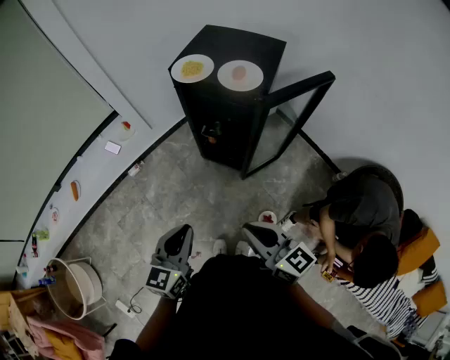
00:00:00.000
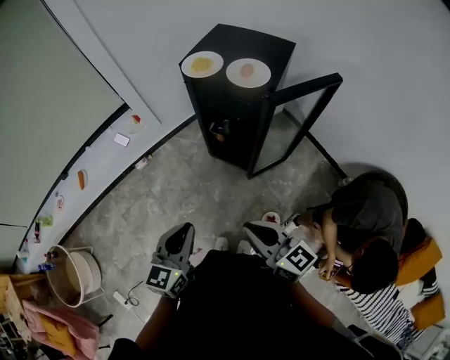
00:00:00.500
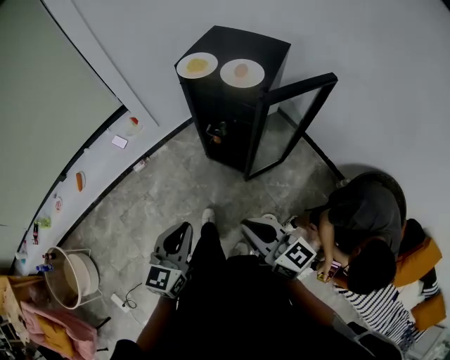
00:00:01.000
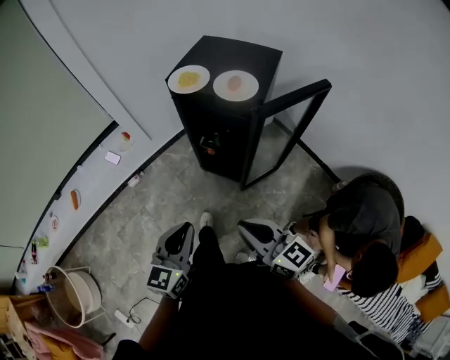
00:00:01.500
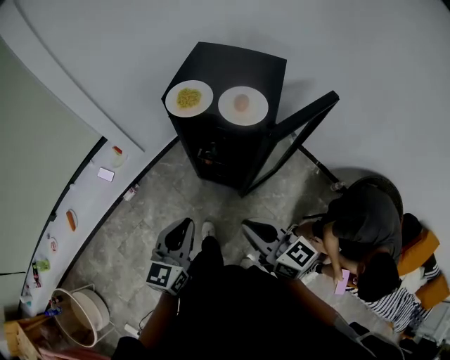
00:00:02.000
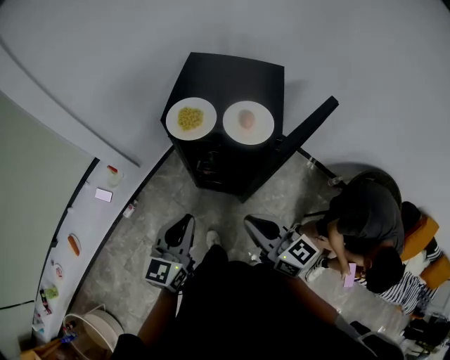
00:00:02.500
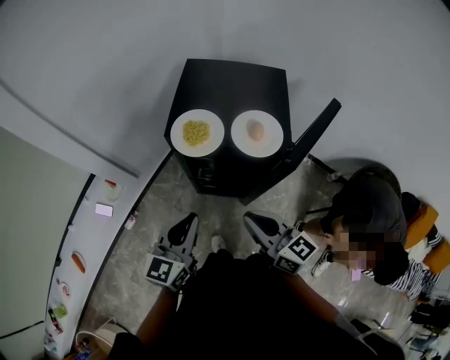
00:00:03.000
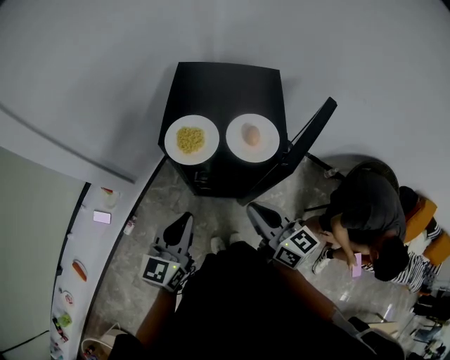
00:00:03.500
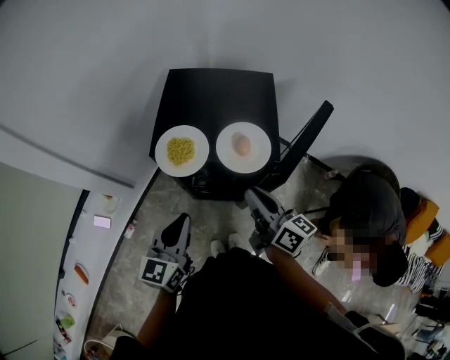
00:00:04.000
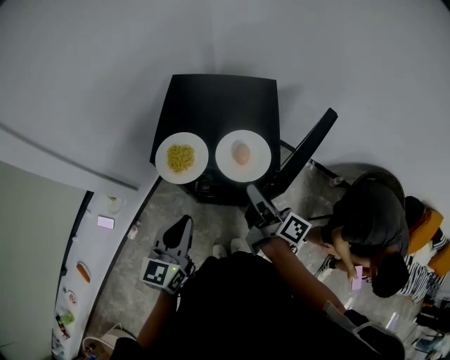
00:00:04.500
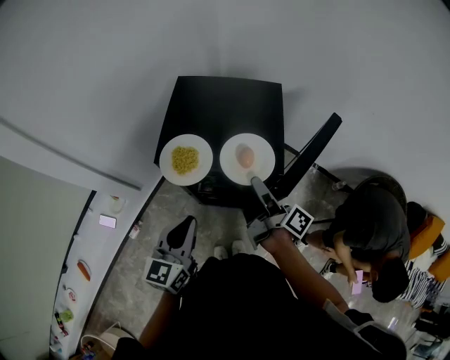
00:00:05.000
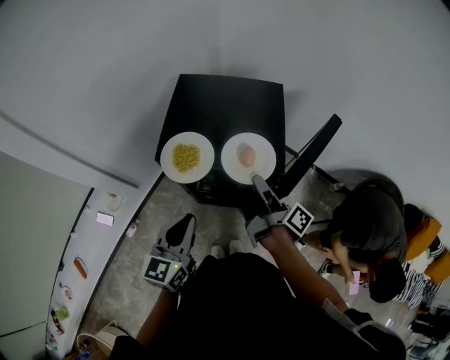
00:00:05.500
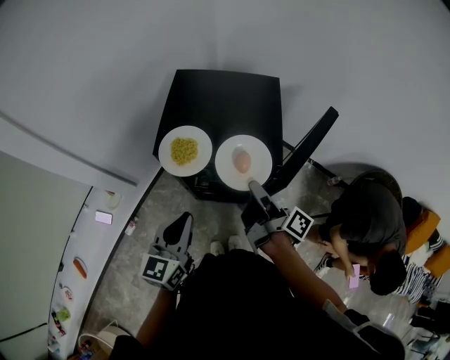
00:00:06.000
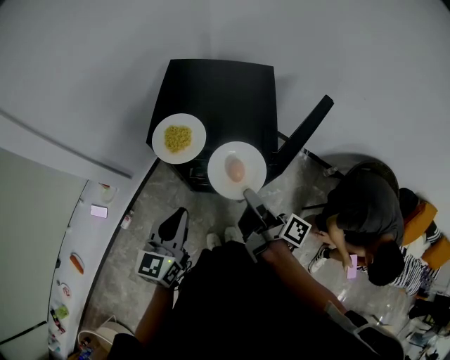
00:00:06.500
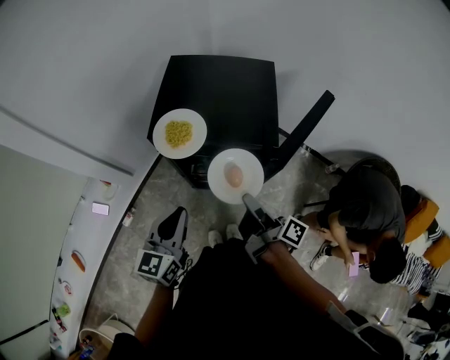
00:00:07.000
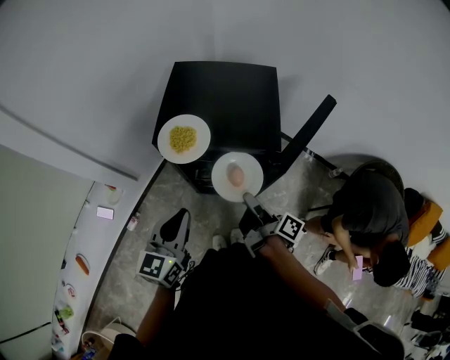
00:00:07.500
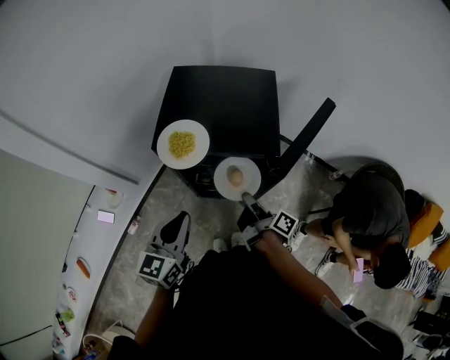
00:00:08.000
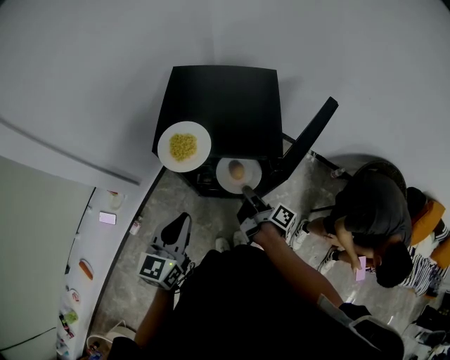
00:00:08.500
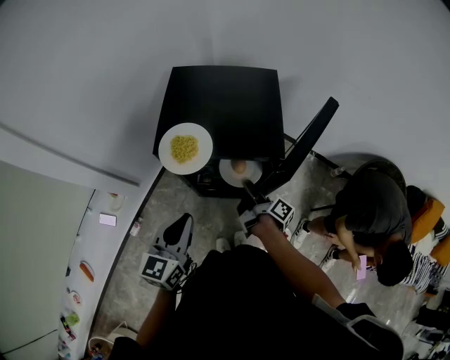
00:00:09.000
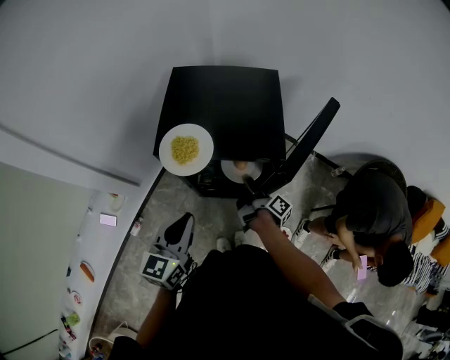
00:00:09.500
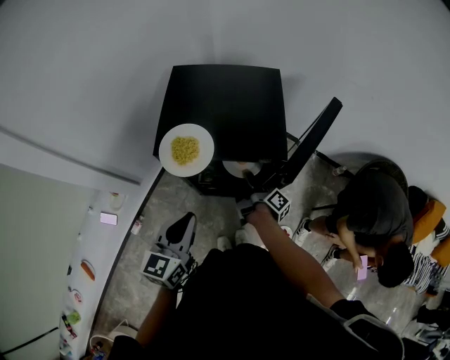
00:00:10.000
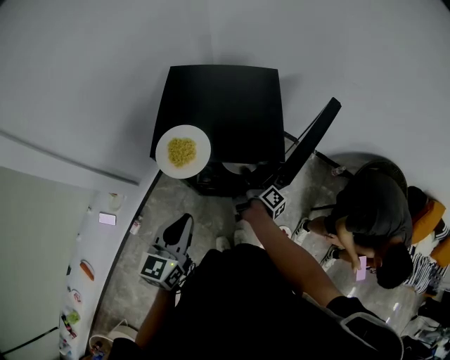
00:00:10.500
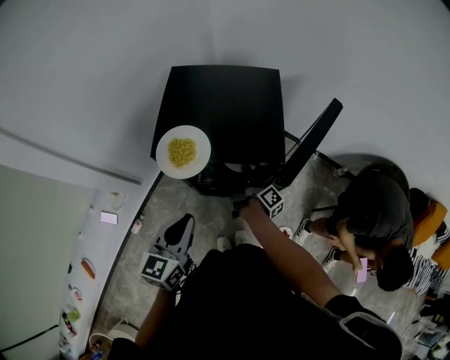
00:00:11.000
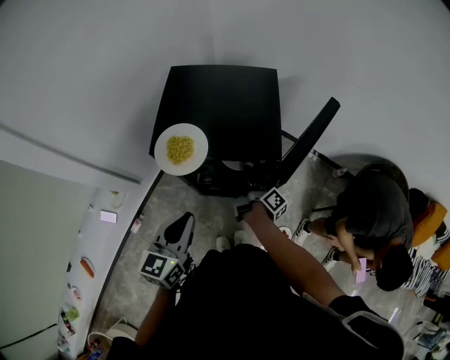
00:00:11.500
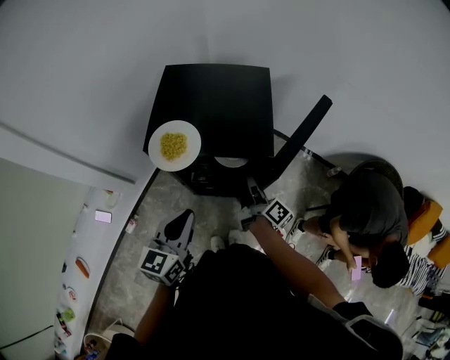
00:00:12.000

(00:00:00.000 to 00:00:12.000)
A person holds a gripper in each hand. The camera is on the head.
00:00:00.000 - 00:00:02.000: The grippers both shift forward by some 15 cm.
00:00:02.000 - 00:00:04.000: Both grippers move forward, about 20 cm. The right gripper swivels some 40 degrees.
00:00:04.000 - 00:00:06.000: The right gripper rolls clockwise, seen from behind, by about 40 degrees.
00:00:06.000 - 00:00:08.000: The right gripper travels downward by some 10 cm.
00:00:08.000 - 00:00:10.000: The right gripper travels forward and downward by approximately 10 cm.
00:00:10.000 - 00:00:12.000: The right gripper shifts approximately 5 cm upward, swivels about 30 degrees, and opens, then closes again.

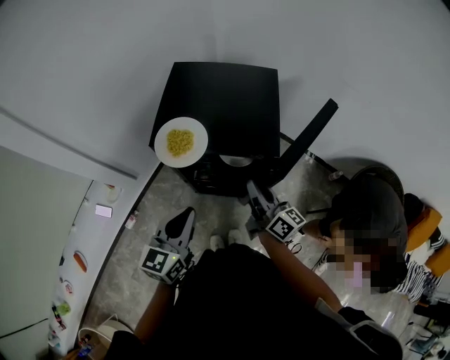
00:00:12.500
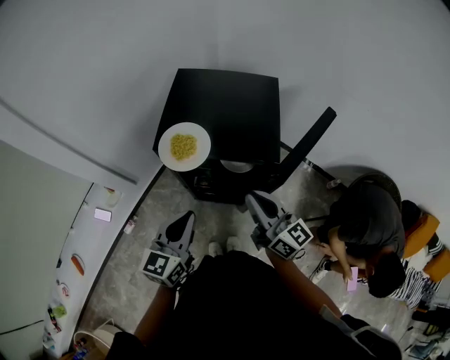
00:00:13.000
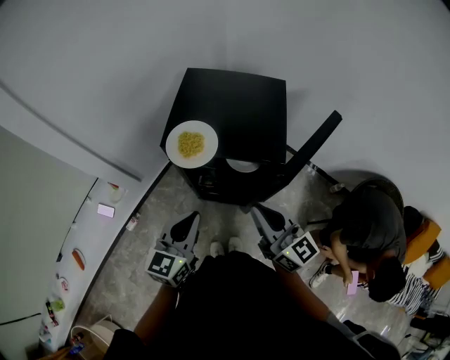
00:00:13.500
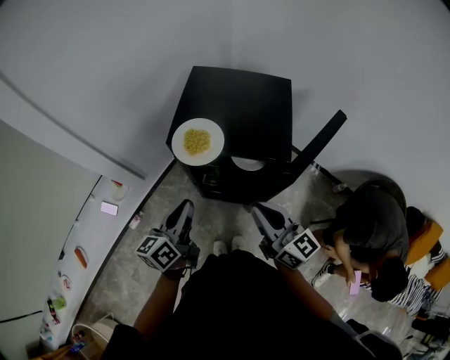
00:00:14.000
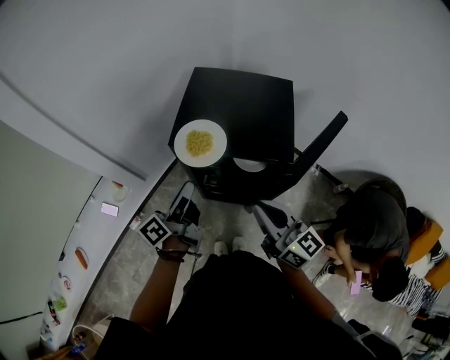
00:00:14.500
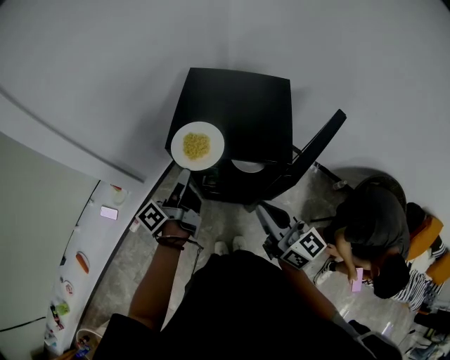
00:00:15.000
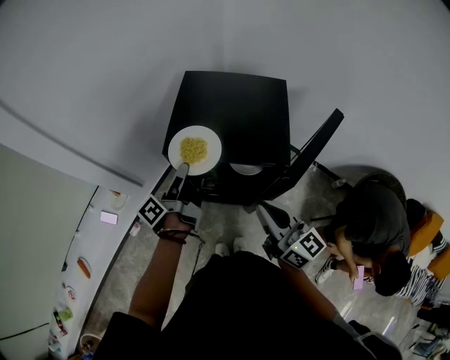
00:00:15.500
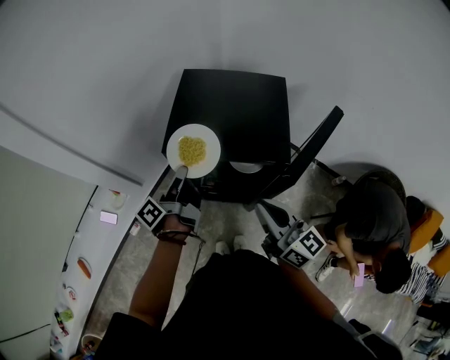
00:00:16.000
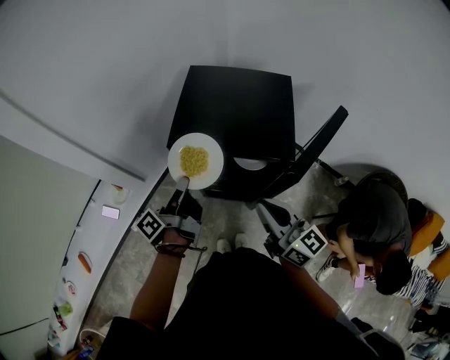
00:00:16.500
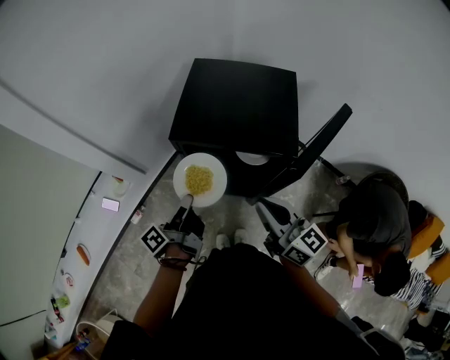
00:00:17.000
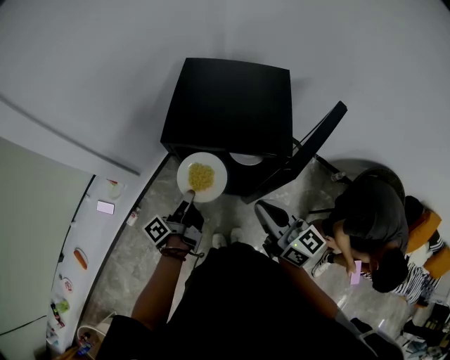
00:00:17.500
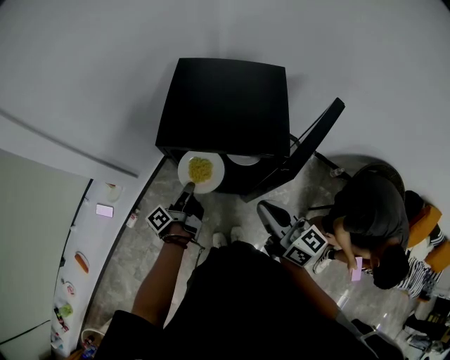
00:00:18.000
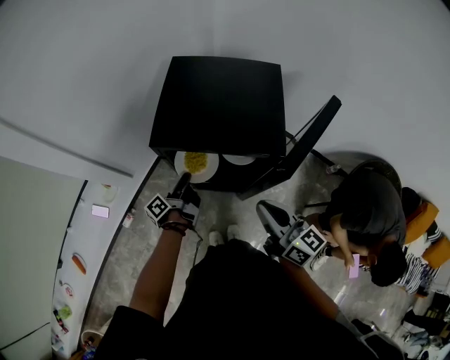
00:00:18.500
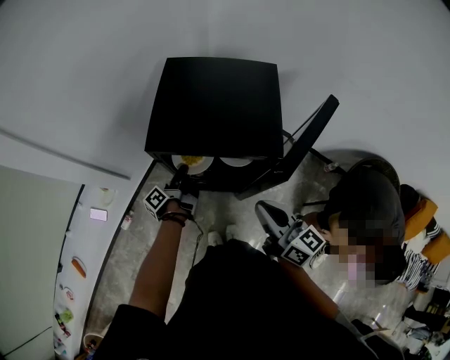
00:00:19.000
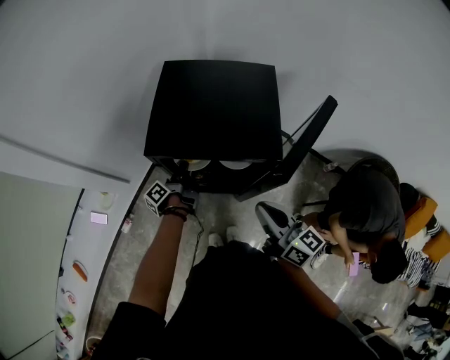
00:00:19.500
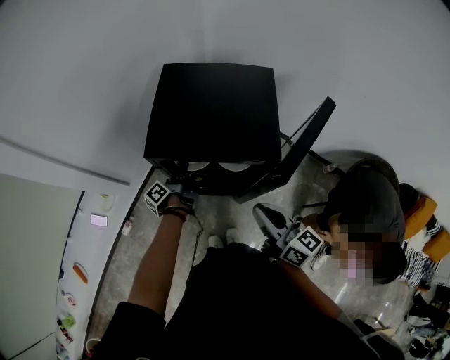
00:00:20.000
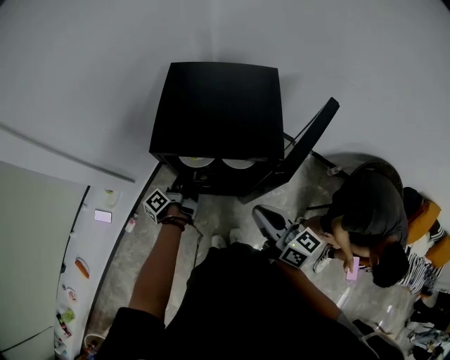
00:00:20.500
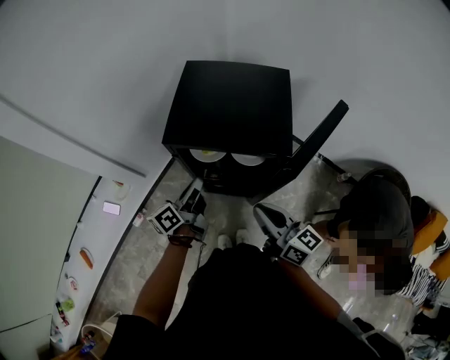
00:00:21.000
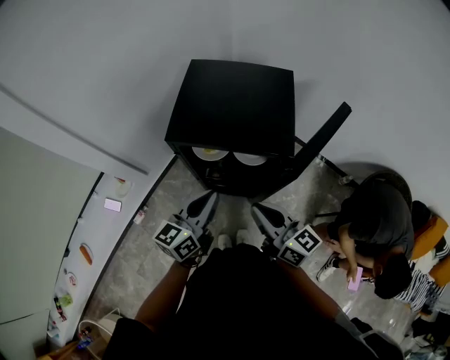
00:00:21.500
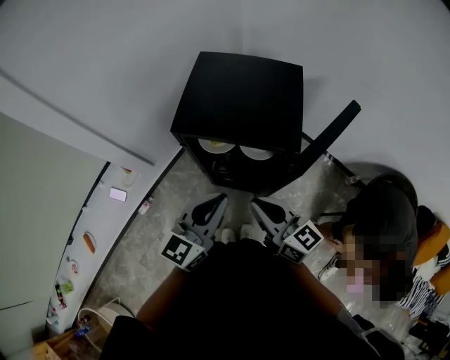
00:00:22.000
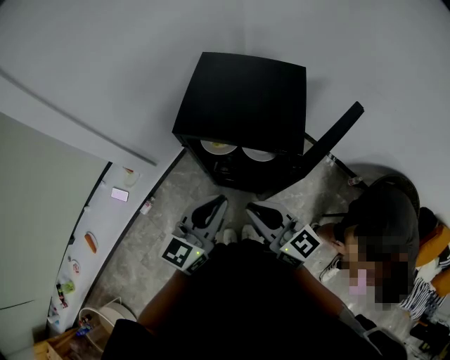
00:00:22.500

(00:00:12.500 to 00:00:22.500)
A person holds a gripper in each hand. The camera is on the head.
00:00:12.500 - 00:00:14.500: The left gripper shifts some 5 cm forward, rotates around the line of its fingers by roughly 60 degrees, counterclockwise from behind, and opens up. Meanwhile the right gripper heads upward, backward and to the left, covering approximately 15 cm, and turns by about 20 degrees.
00:00:14.500 - 00:00:16.500: The left gripper closes up.
00:00:16.500 - 00:00:18.500: The right gripper changes place by roughly 5 cm. The left gripper shifts about 15 cm downward.
00:00:20.500 - 00:00:22.500: The left gripper travels upward and backward by about 30 cm, and rotates around the line of its fingers by some 80 degrees, clockwise from behind. The right gripper goes about 5 cm to the left, and changes its angle by some 20 degrees.

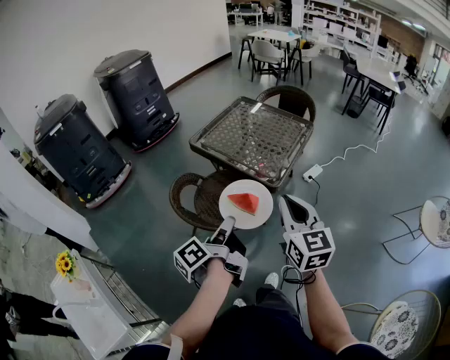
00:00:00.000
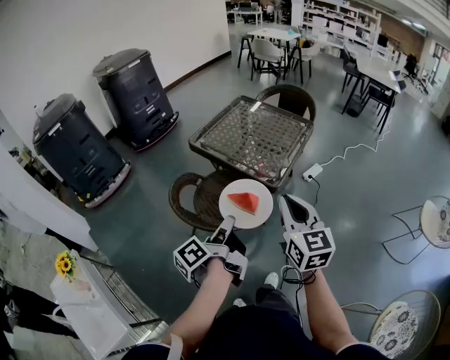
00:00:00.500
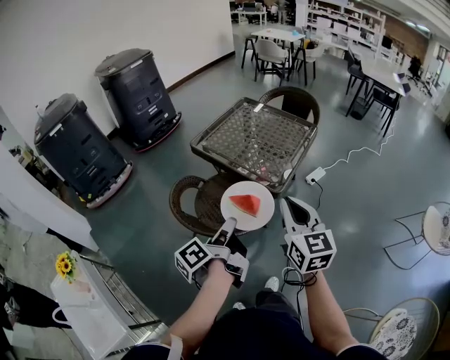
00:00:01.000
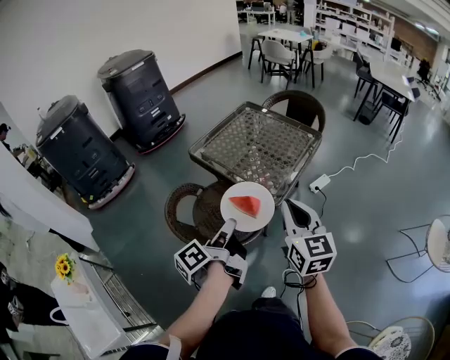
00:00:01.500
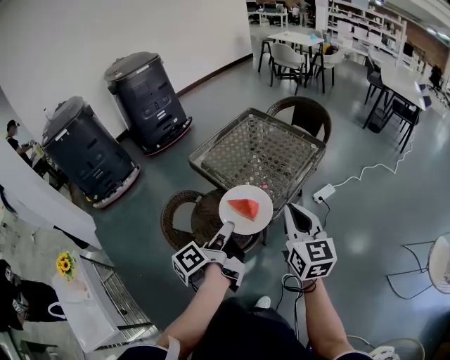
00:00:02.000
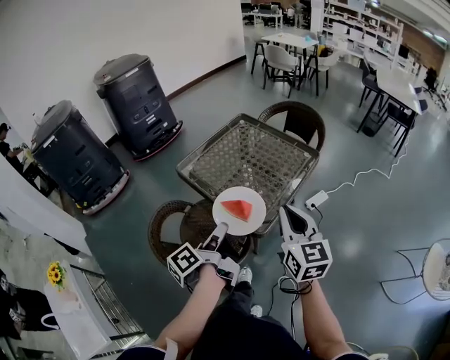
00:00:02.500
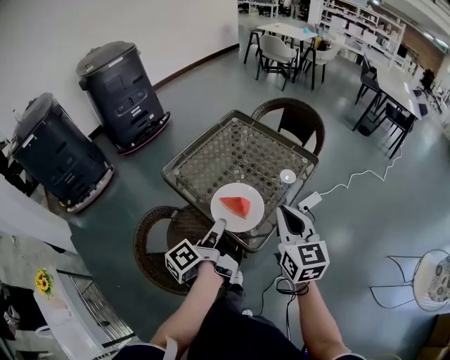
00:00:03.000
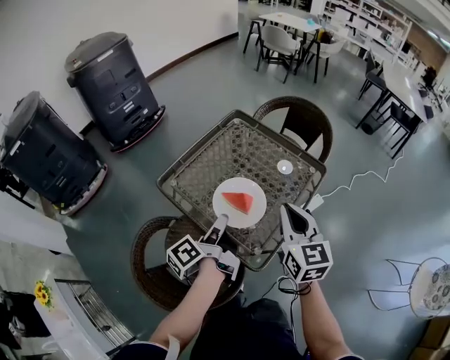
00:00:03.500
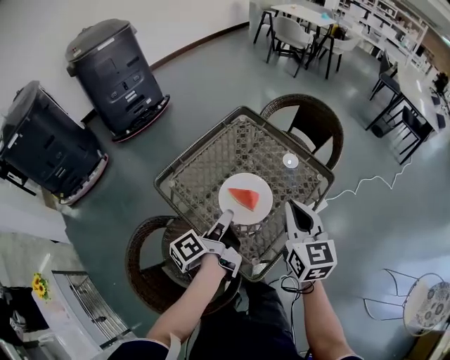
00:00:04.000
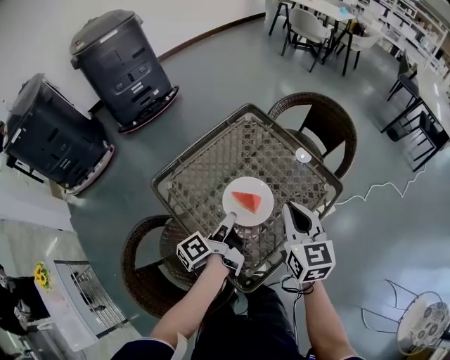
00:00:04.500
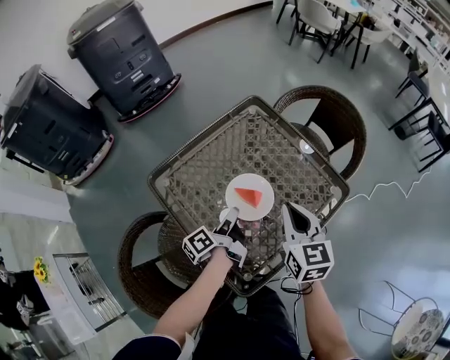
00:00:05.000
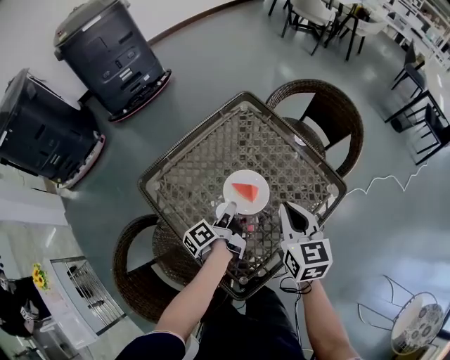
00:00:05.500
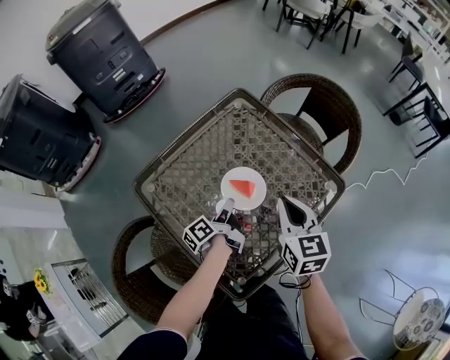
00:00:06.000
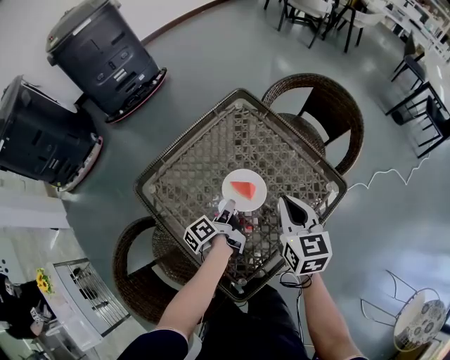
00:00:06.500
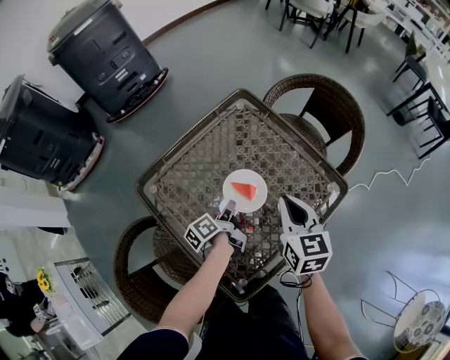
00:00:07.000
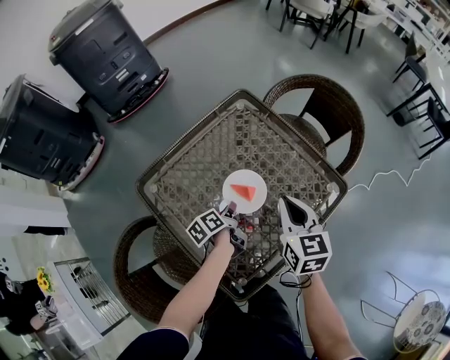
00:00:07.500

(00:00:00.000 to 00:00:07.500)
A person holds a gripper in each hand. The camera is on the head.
00:00:00.000 - 00:00:02.000: Both grippers travel together forward and to the right, some 15 cm.
00:00:02.000 - 00:00:04.000: The grippers both shift forward by about 35 cm.
00:00:04.000 - 00:00:05.500: The right gripper shifts approximately 15 cm forward and downward, while the left gripper goes about 20 cm downward and forward.
00:00:05.500 - 00:00:07.500: The left gripper is displaced downward by approximately 5 cm, and changes its angle by some 20 degrees.
